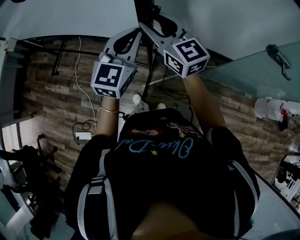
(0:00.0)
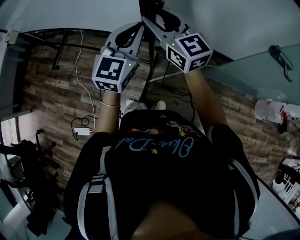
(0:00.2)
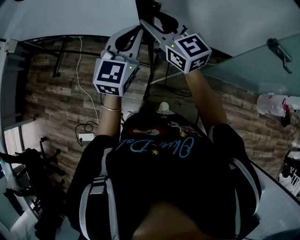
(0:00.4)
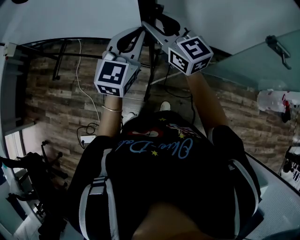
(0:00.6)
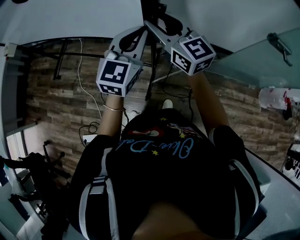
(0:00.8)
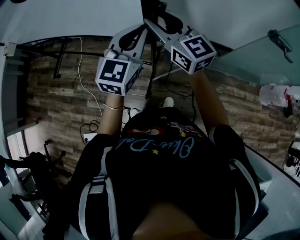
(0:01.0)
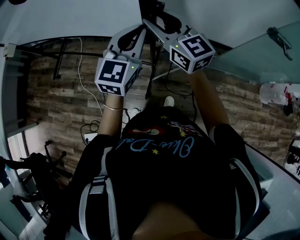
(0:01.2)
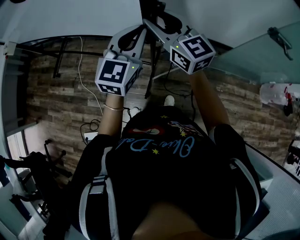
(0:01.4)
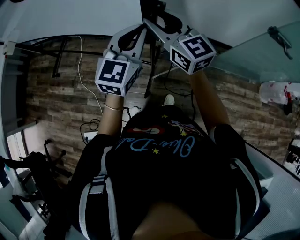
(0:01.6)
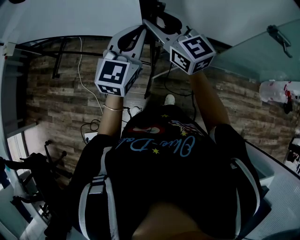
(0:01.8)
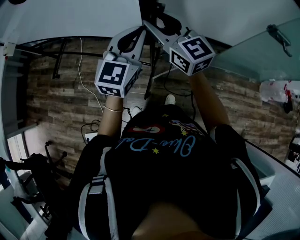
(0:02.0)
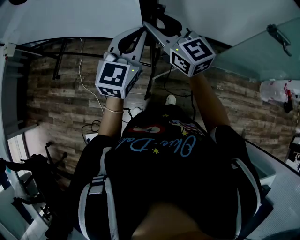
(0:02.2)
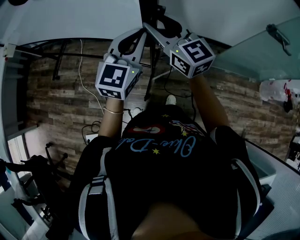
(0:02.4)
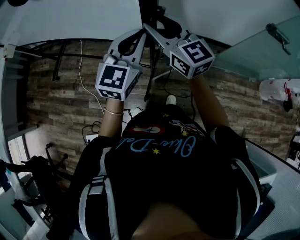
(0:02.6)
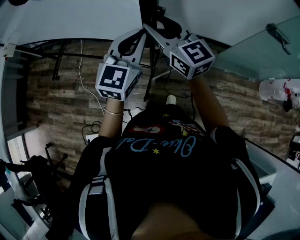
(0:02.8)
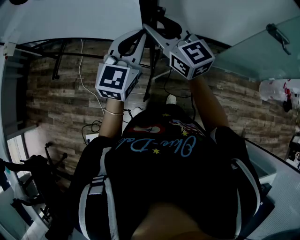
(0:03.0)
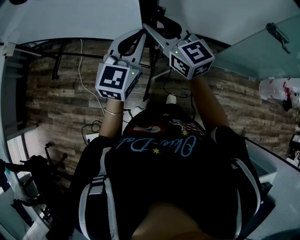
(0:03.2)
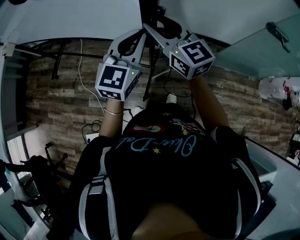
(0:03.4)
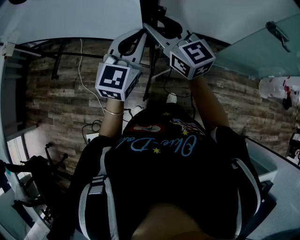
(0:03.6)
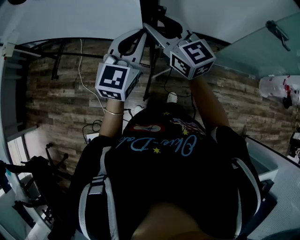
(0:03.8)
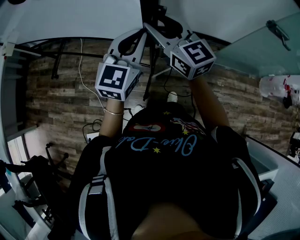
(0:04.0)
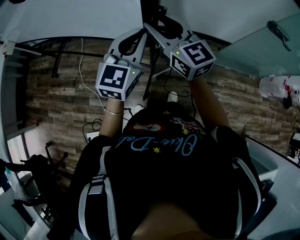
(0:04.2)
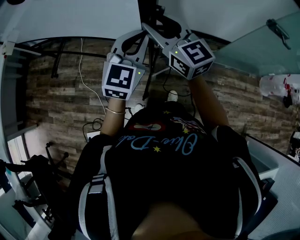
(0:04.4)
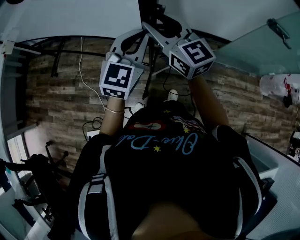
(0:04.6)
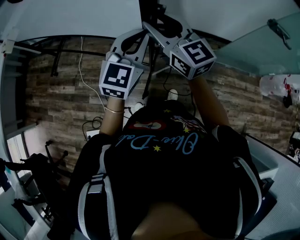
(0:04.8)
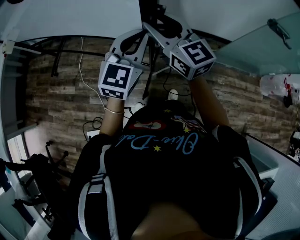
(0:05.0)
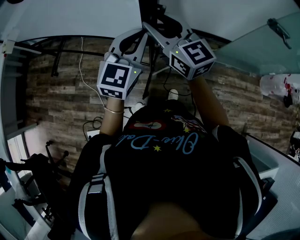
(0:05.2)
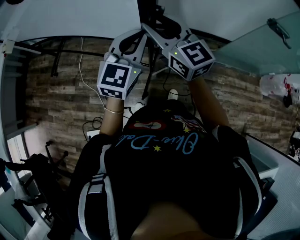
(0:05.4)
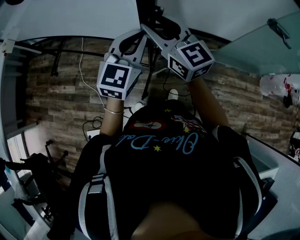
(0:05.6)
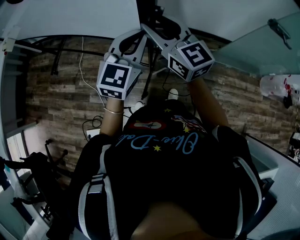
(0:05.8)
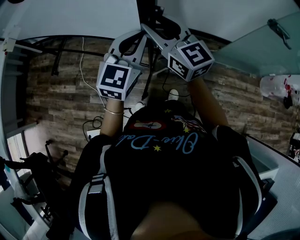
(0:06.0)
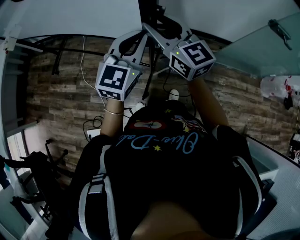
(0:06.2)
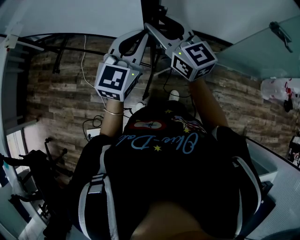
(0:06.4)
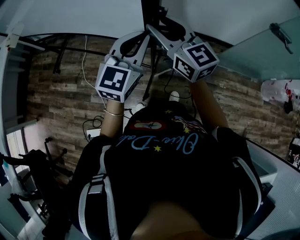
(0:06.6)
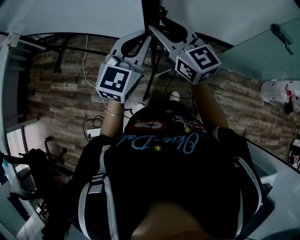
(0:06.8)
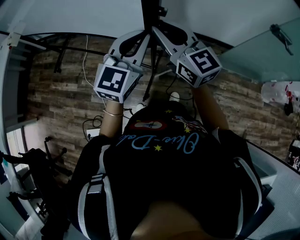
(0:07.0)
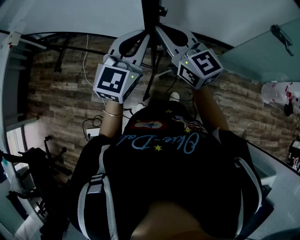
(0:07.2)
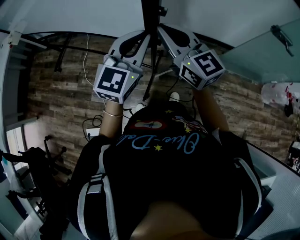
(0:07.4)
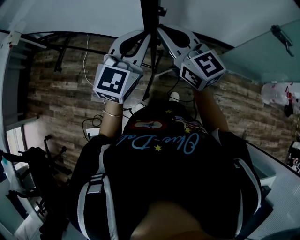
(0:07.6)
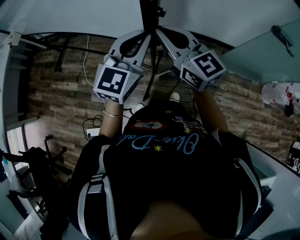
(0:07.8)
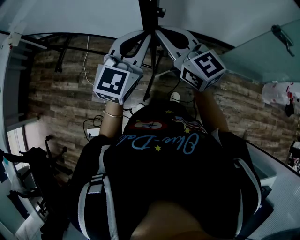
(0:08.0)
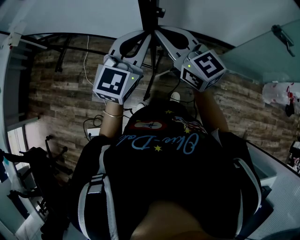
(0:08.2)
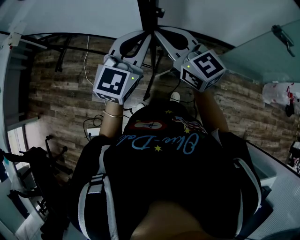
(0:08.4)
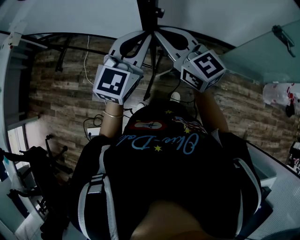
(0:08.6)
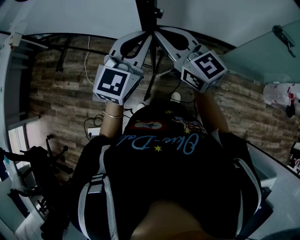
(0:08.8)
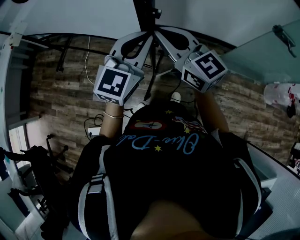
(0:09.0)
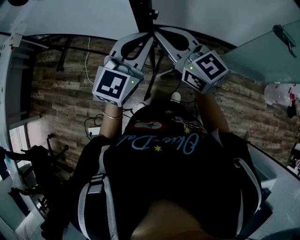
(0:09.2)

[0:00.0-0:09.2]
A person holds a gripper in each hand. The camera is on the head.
0:00.0 to 0:01.6: The right gripper moves some 5 cm. The left gripper changes place by approximately 5 cm.
0:01.6 to 0:03.0: The grippers stay close to where they were, moving slightly.
0:03.0 to 0:04.6: The grippers move only a little.
0:04.6 to 0:06.2: Both grippers stay put.
0:06.2 to 0:07.6: The right gripper closes up.
0:07.6 to 0:09.2: The grippers make only small movements.

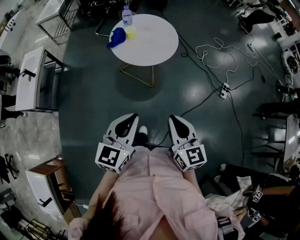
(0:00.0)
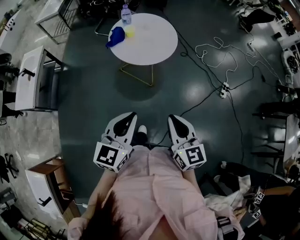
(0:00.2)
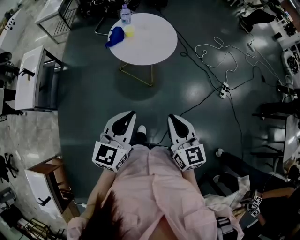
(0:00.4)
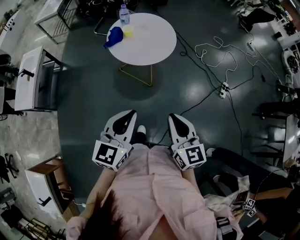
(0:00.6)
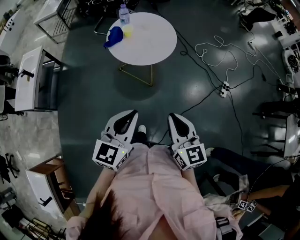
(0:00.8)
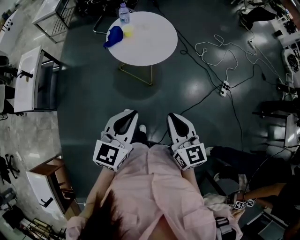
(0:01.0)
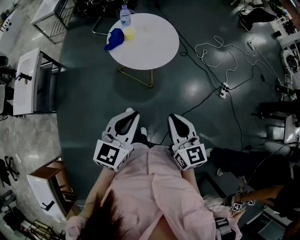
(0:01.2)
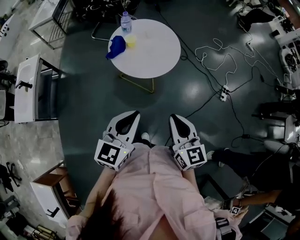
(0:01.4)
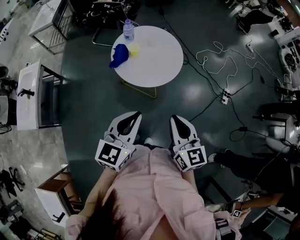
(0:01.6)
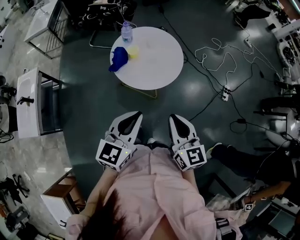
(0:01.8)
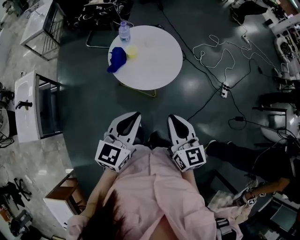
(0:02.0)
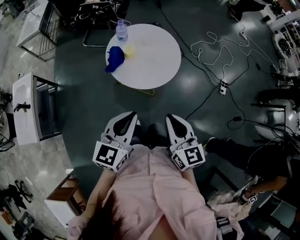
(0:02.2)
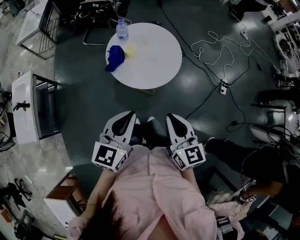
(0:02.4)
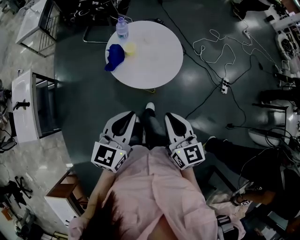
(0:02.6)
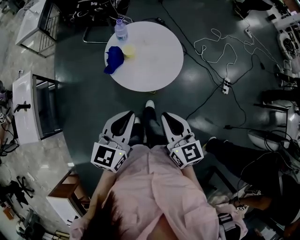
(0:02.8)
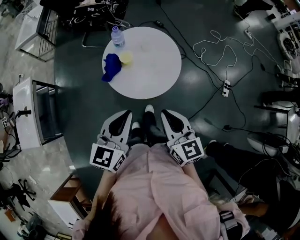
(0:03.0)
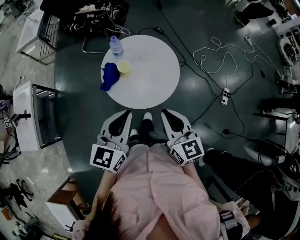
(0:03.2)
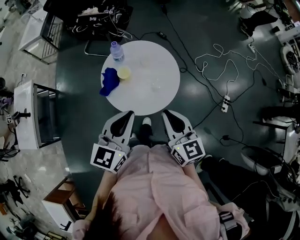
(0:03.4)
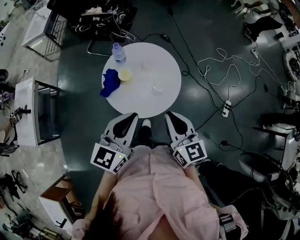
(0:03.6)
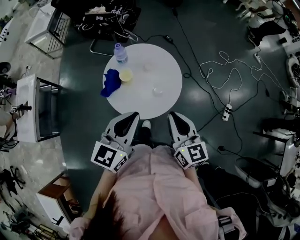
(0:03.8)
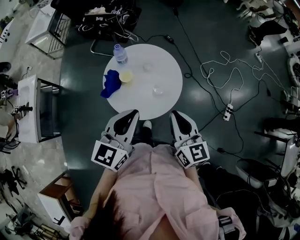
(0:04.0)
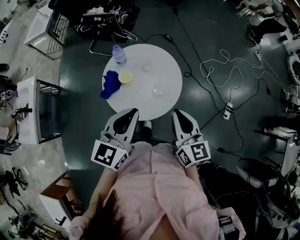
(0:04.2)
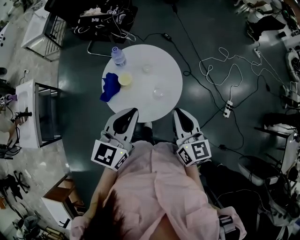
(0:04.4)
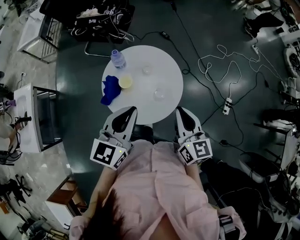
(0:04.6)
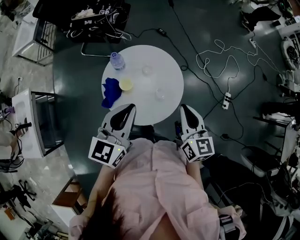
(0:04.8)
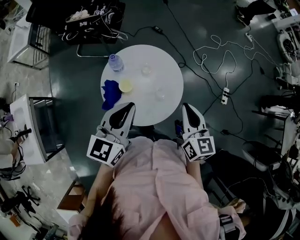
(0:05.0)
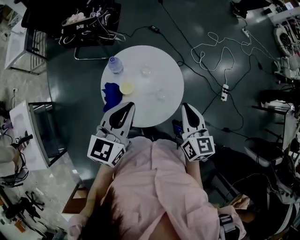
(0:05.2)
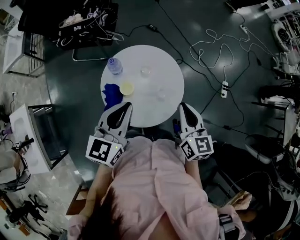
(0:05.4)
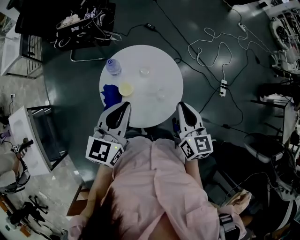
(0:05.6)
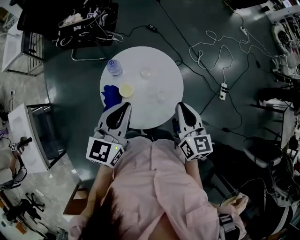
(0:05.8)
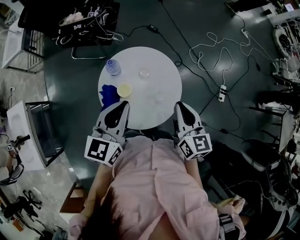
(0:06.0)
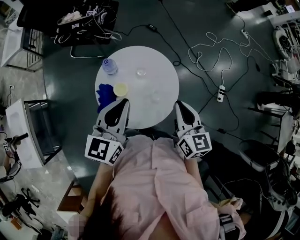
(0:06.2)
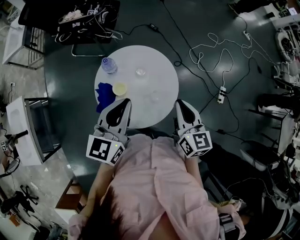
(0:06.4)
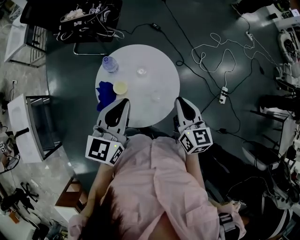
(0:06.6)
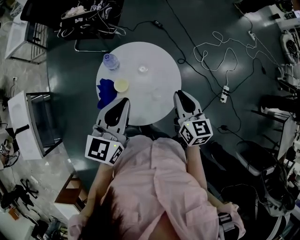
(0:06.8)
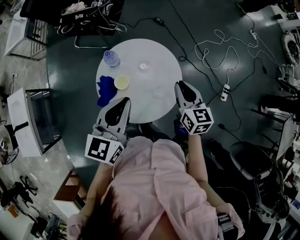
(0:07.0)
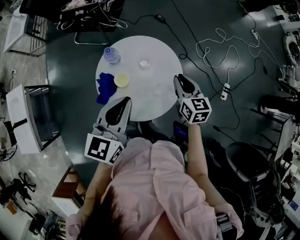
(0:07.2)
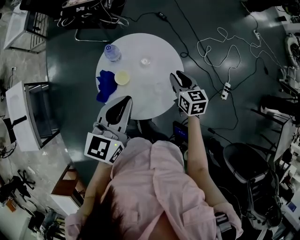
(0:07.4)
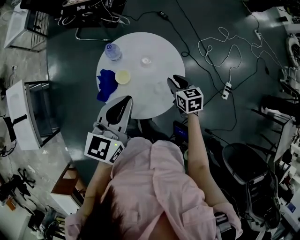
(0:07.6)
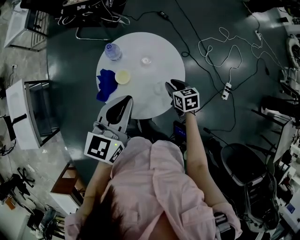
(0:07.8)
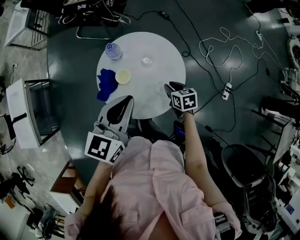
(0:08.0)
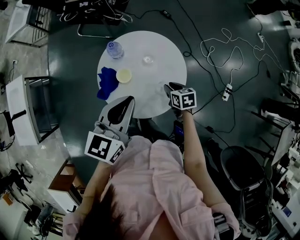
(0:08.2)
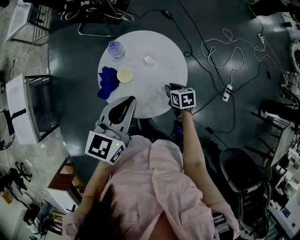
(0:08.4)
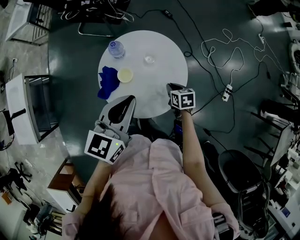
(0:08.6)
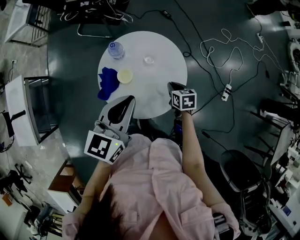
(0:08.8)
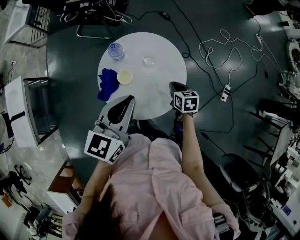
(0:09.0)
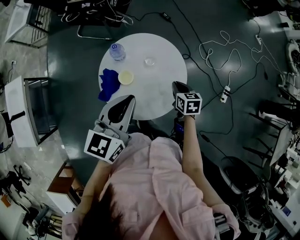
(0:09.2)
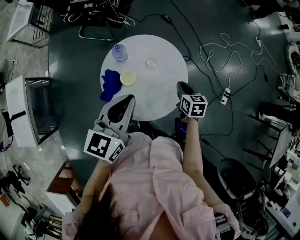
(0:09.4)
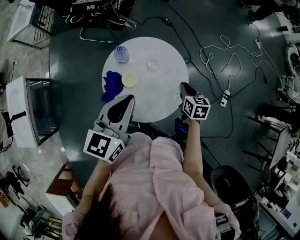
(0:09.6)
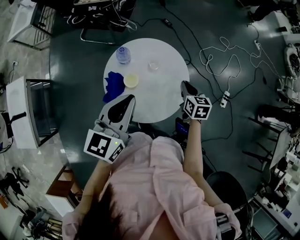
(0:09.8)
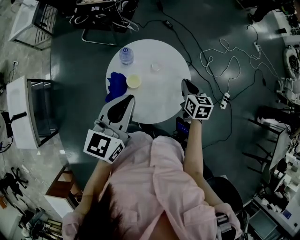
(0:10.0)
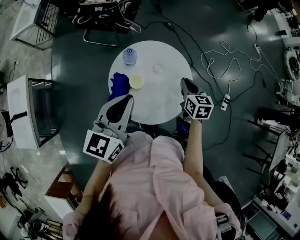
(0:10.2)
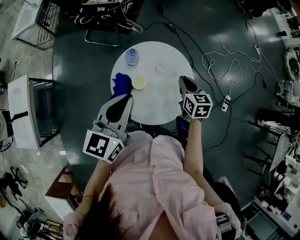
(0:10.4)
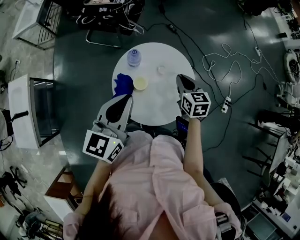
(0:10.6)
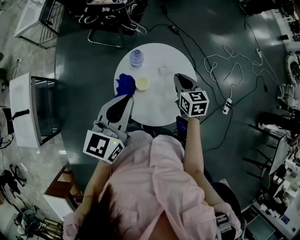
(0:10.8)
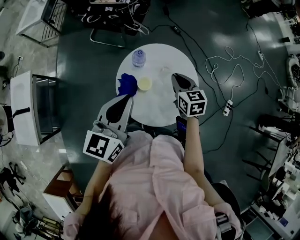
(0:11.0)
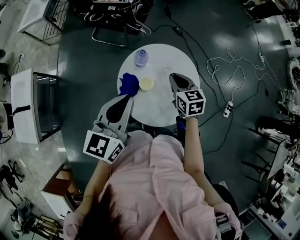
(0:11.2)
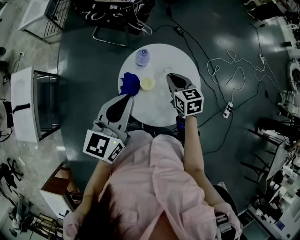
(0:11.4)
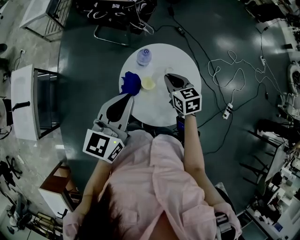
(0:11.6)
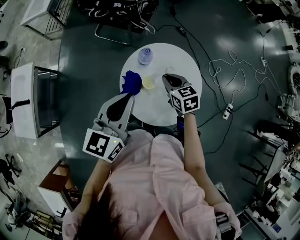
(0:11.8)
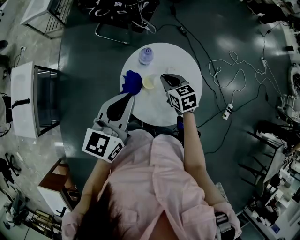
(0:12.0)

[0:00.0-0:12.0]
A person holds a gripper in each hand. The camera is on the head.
0:00.0 to 0:01.6: Both grippers move forward and to the left, some 15 cm.
0:01.6 to 0:03.0: The two grippers go roughly 10 cm forward.
0:03.0 to 0:04.4: The right gripper goes approximately 15 cm forward and to the right; the left gripper travels forward by about 15 cm.
0:04.4 to 0:06.0: The right gripper moves forward, approximately 5 cm, while the left gripper moves forward and to the left, about 10 cm.
0:06.0 to 0:07.6: The right gripper travels downward and forward by roughly 20 cm, and swivels roughly 30 degrees.
0:09.0 to 0:10.4: The right gripper heads upward and to the left, covering some 10 cm, while the left gripper travels to the left by about 10 cm.
0:10.4 to 0:12.0: The right gripper goes roughly 15 cm to the left, and changes its angle by some 30 degrees.

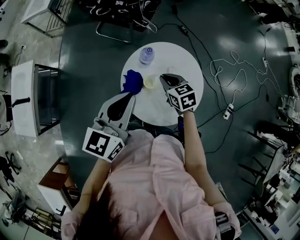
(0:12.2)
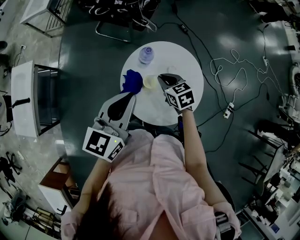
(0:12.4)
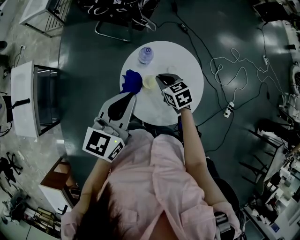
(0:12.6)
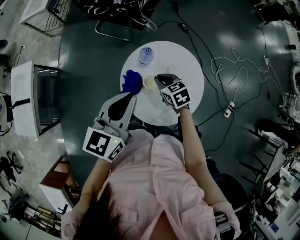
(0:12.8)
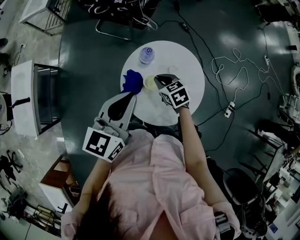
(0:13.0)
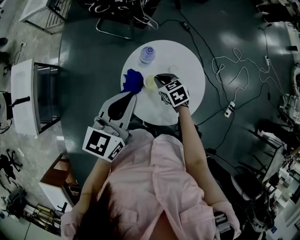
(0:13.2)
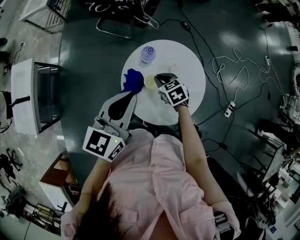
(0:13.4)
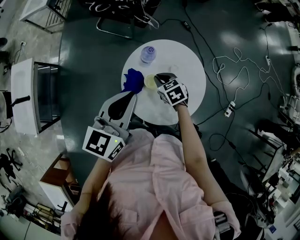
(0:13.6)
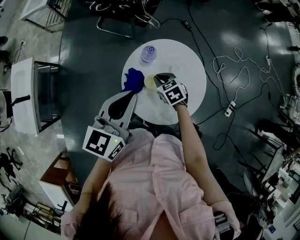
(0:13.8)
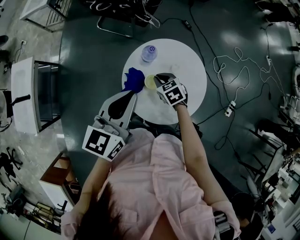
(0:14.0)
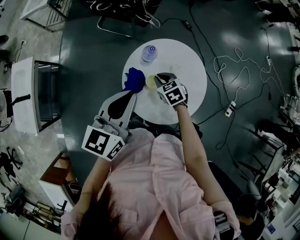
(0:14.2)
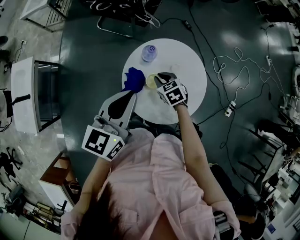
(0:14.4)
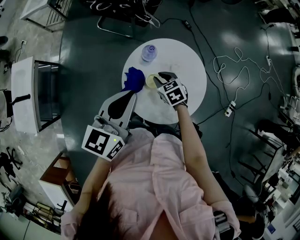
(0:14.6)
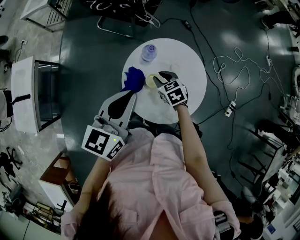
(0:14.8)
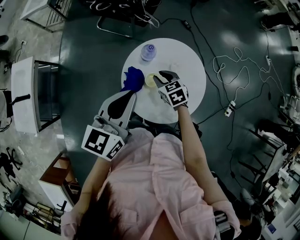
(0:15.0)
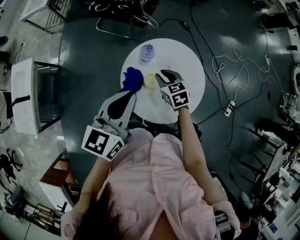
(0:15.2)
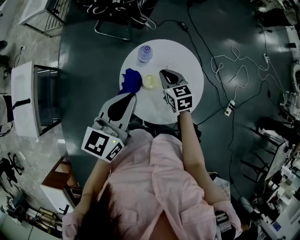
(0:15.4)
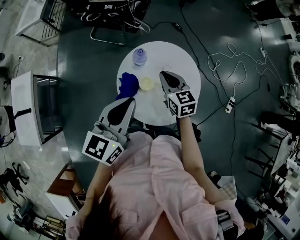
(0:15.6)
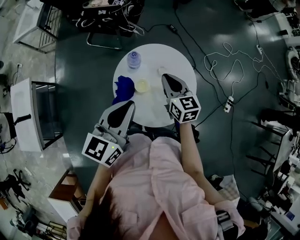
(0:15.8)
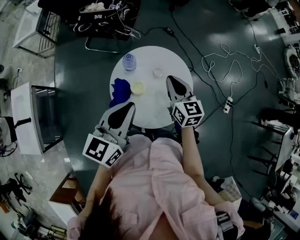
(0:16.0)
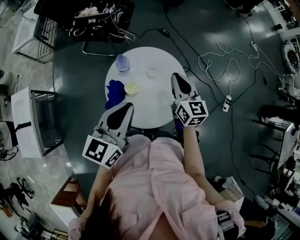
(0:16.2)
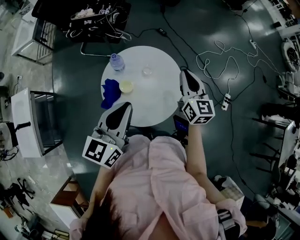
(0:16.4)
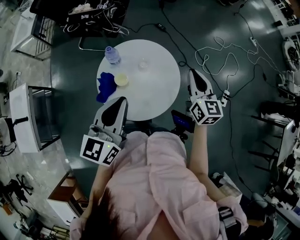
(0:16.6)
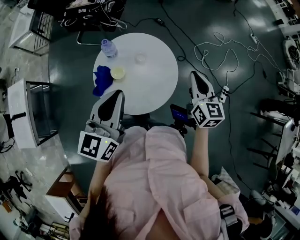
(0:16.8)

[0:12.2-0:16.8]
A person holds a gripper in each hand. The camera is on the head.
0:12.2 to 0:13.8: The right gripper is displaced downward by some 5 cm.
0:13.8 to 0:15.2: There are only small adjustments of the grippers.
0:15.2 to 0:16.8: The right gripper is displaced to the right and upward by about 35 cm, and turns by some 40 degrees. The left gripper shifts roughly 10 cm to the right.
